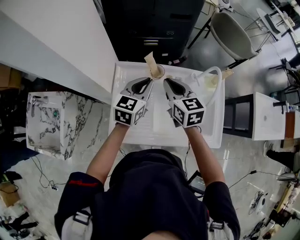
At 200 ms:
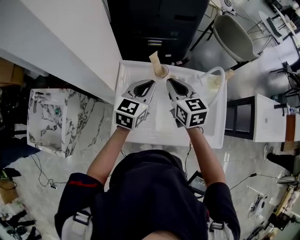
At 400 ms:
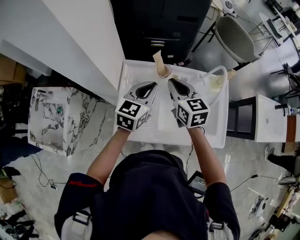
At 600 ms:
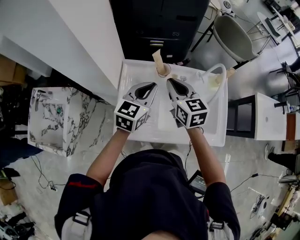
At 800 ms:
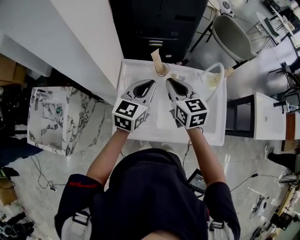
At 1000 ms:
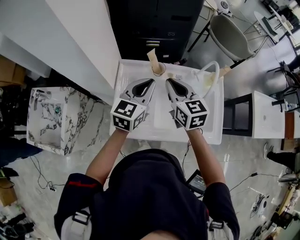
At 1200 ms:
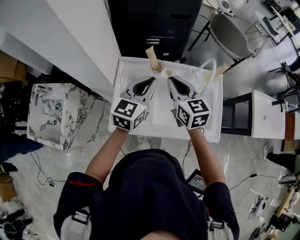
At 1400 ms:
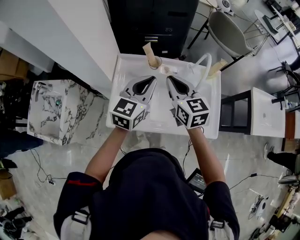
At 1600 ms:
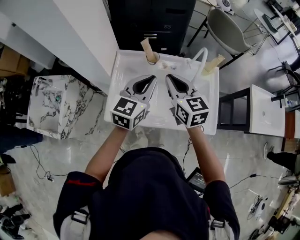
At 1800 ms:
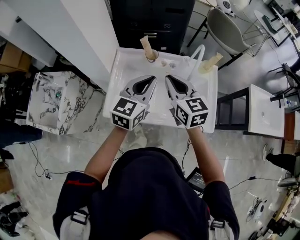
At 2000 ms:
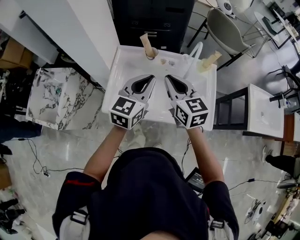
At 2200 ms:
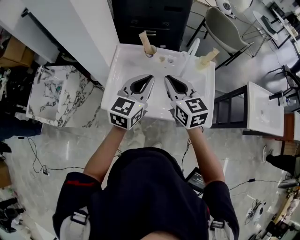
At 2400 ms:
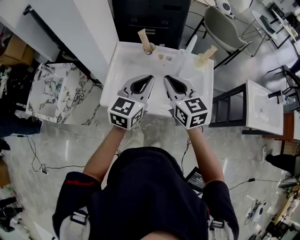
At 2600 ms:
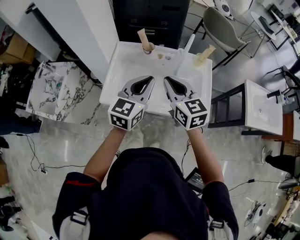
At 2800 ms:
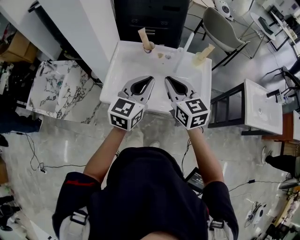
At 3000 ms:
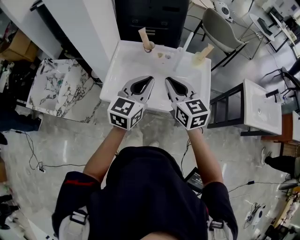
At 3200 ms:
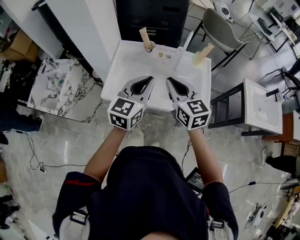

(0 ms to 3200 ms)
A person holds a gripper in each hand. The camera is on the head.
0 ms - 1600 ms: The left gripper shifts roughly 15 cm backward, upward and to the right. Meanwhile the right gripper moves backward and upward, some 10 cm.
1600 ms - 3200 ms: Both grippers travel together backward, approximately 15 cm.

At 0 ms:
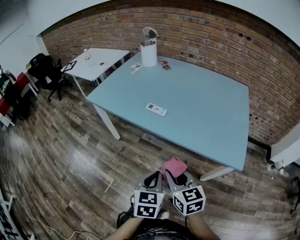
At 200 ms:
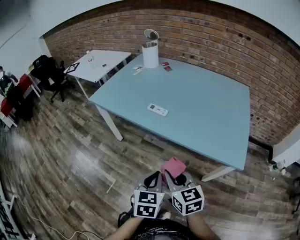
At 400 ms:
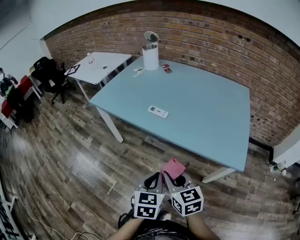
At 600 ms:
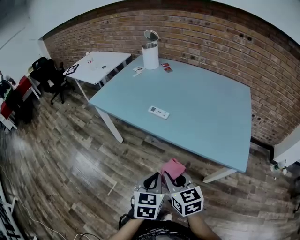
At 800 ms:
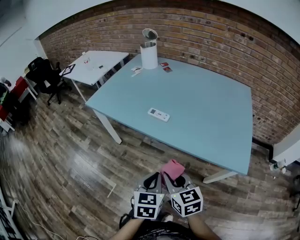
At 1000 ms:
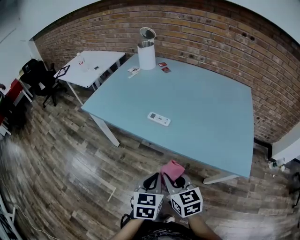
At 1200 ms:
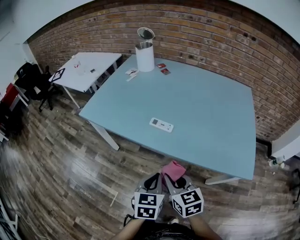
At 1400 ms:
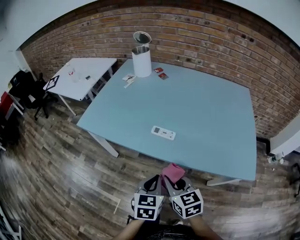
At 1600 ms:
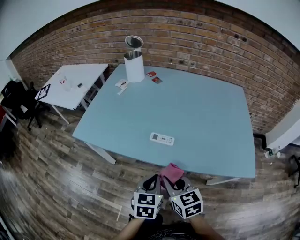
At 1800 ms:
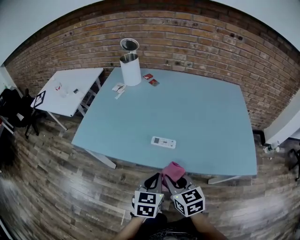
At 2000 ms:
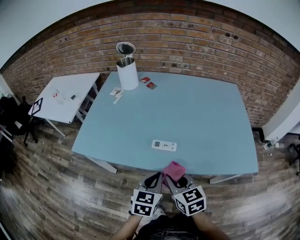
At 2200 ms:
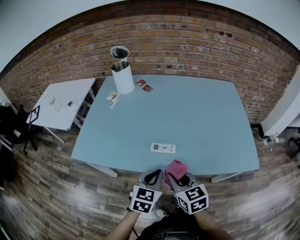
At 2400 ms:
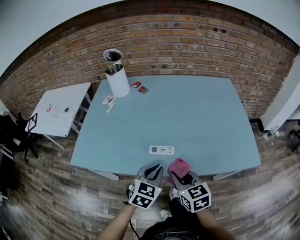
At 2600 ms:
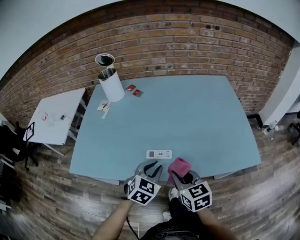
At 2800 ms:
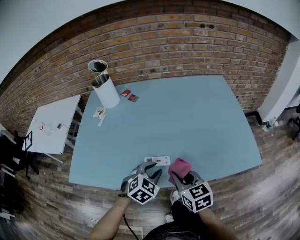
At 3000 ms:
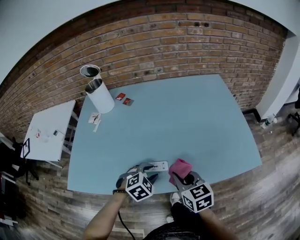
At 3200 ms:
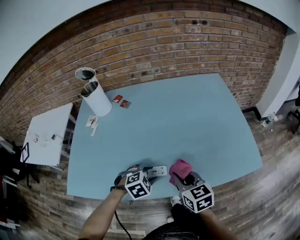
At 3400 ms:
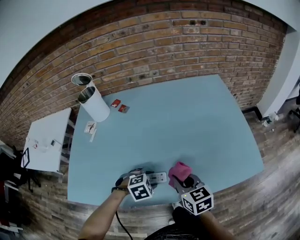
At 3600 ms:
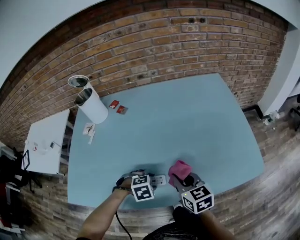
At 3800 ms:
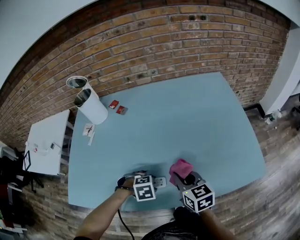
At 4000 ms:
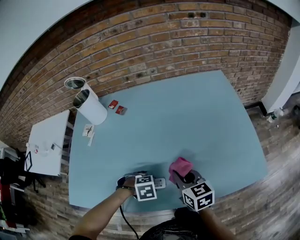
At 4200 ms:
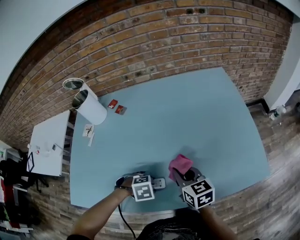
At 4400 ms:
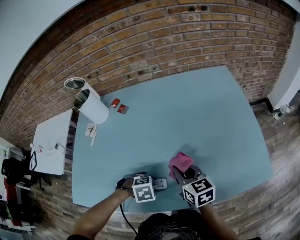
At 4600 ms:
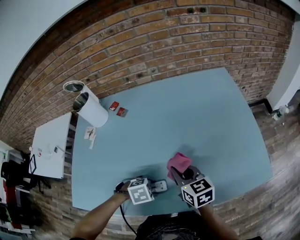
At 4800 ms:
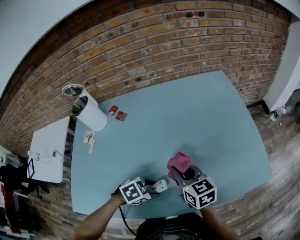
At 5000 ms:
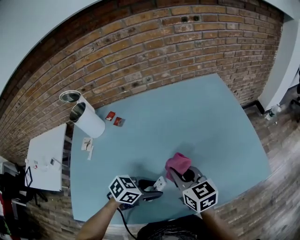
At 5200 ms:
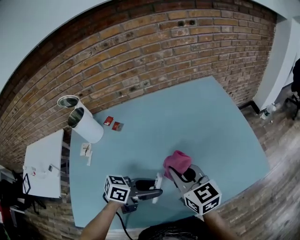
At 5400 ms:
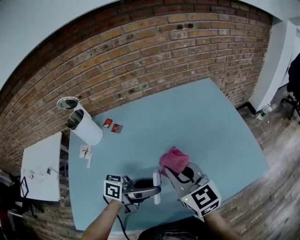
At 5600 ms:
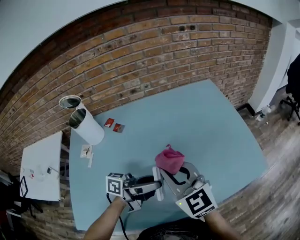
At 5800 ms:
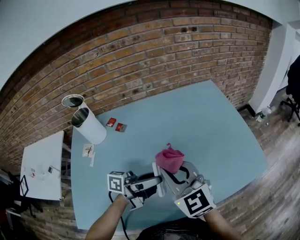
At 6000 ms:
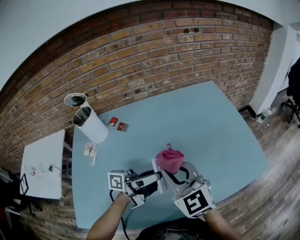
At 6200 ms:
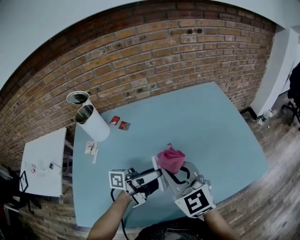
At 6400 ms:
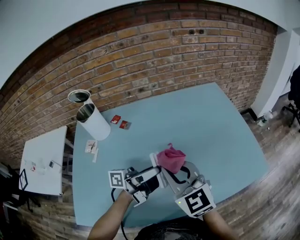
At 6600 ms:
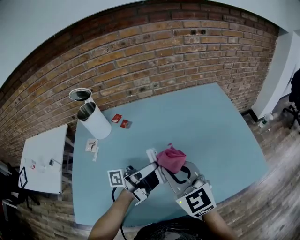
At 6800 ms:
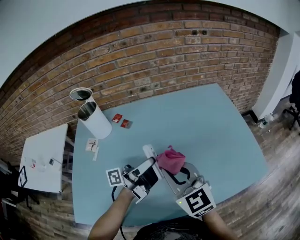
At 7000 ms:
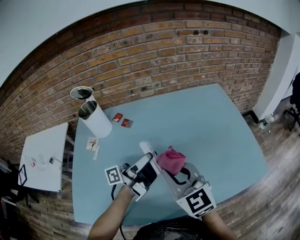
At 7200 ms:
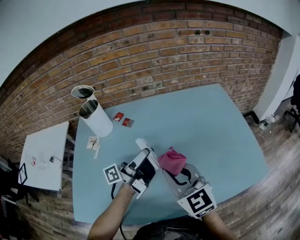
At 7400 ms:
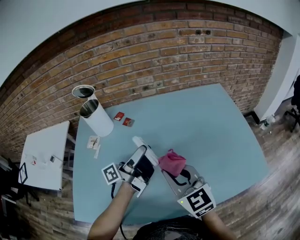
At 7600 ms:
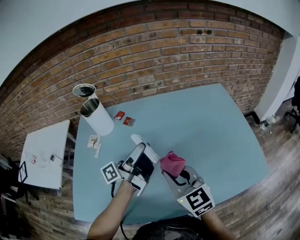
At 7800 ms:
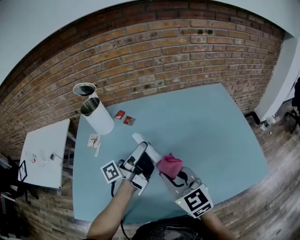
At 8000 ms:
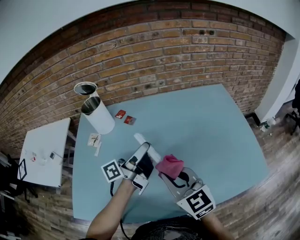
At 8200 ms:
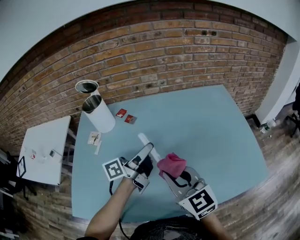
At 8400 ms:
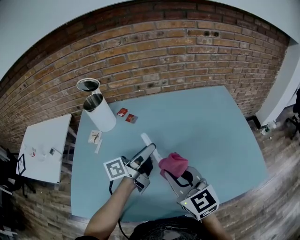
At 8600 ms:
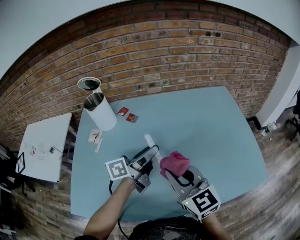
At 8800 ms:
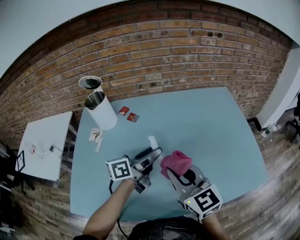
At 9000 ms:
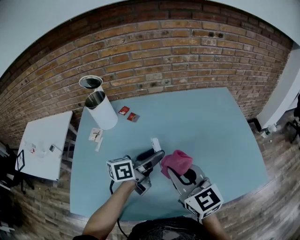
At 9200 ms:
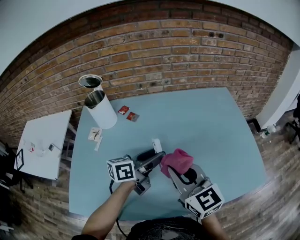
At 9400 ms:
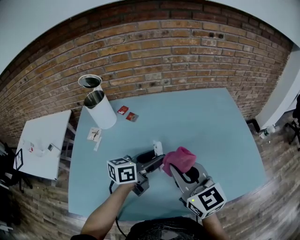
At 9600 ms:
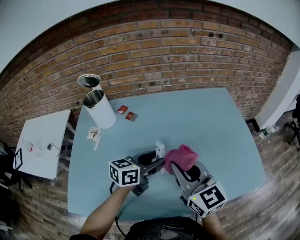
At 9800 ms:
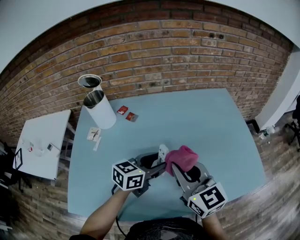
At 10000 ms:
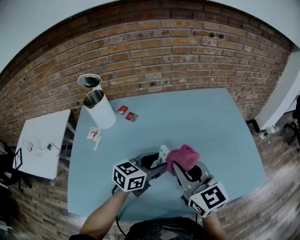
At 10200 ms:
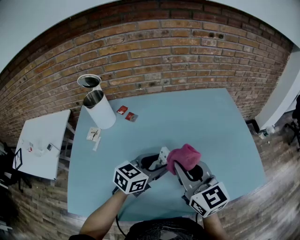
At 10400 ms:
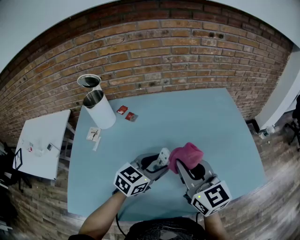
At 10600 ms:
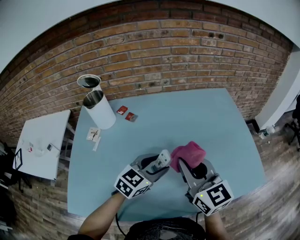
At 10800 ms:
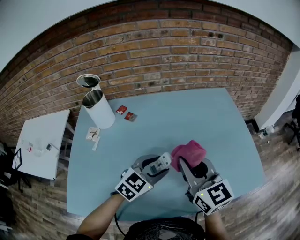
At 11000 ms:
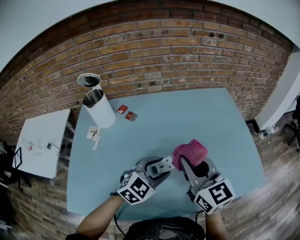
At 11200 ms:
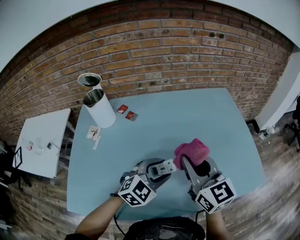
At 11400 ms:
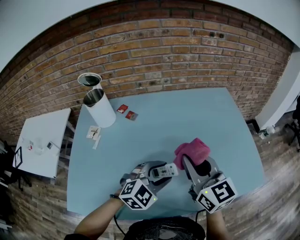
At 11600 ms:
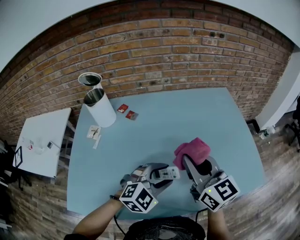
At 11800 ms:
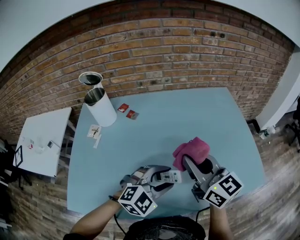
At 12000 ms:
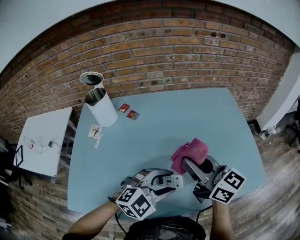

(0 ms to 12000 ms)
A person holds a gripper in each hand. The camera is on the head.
0 ms - 1600 ms: The right gripper travels forward and to the left by about 20 cm; the left gripper travels forward by about 20 cm.
1600 ms - 3000 ms: The left gripper ends up roughly 20 cm from where it was, rotates around the line of its fingers by approximately 60 degrees, clockwise from behind, and opens up. Meanwhile the right gripper ends up roughly 15 cm from where it was.
3000 ms - 4400 ms: The left gripper moves downward, roughly 5 cm, and rotates some 40 degrees, while the right gripper shifts by about 15 cm.
4400 ms - 6000 ms: Both grippers move upward, about 20 cm. The left gripper angles its fingers upward, by roughly 100 degrees; the right gripper turns by some 40 degrees.
6000 ms - 7600 ms: The right gripper moves approximately 5 cm. The left gripper goes approximately 10 cm to the left and forward, and changes its angle by about 40 degrees.
7600 ms - 9000 ms: The left gripper moves roughly 5 cm, and rotates some 40 degrees.
9000 ms - 10400 ms: The left gripper shifts by some 5 cm, and swivels roughly 40 degrees.
10400 ms - 12000 ms: The right gripper swivels some 20 degrees. Meanwhile the left gripper moves backward and to the right, about 10 cm, and changes its angle by some 40 degrees.

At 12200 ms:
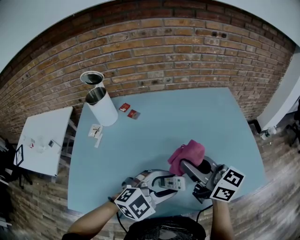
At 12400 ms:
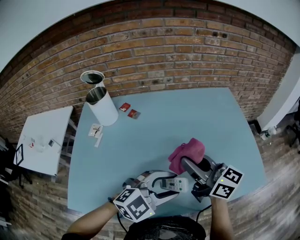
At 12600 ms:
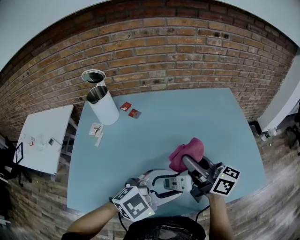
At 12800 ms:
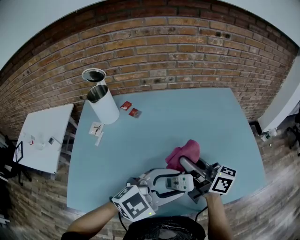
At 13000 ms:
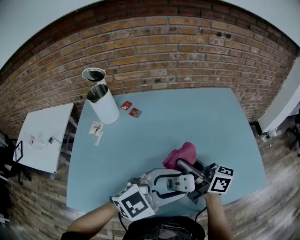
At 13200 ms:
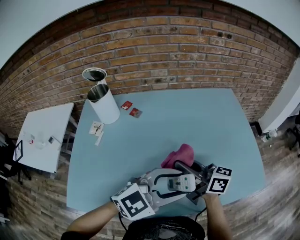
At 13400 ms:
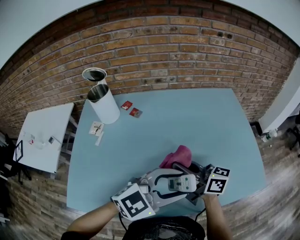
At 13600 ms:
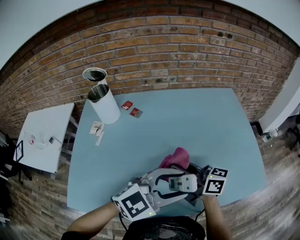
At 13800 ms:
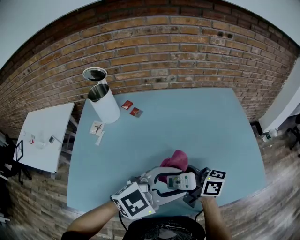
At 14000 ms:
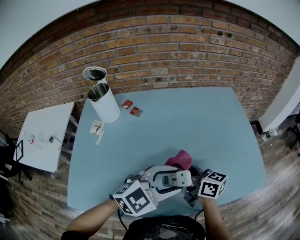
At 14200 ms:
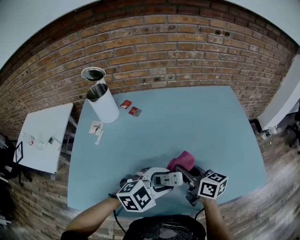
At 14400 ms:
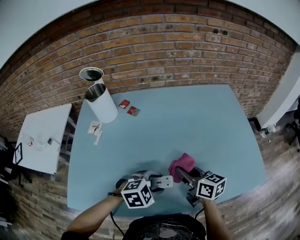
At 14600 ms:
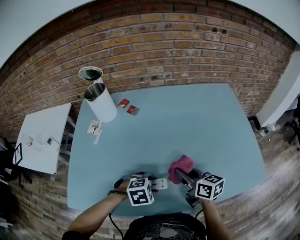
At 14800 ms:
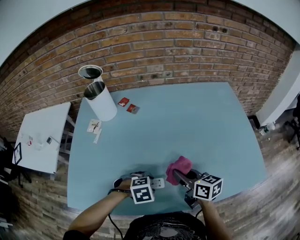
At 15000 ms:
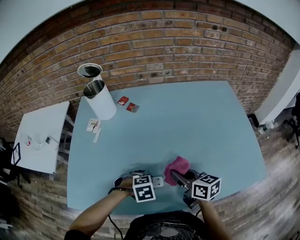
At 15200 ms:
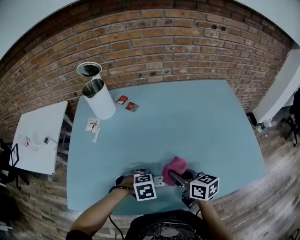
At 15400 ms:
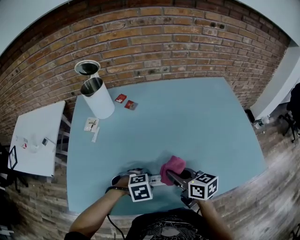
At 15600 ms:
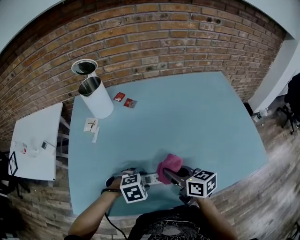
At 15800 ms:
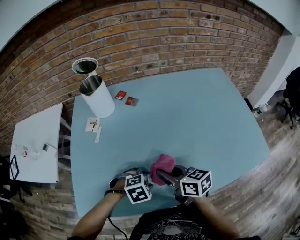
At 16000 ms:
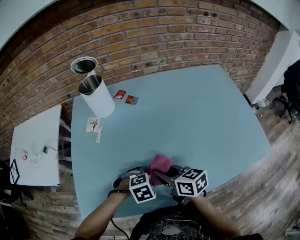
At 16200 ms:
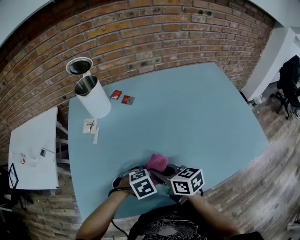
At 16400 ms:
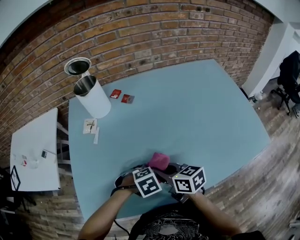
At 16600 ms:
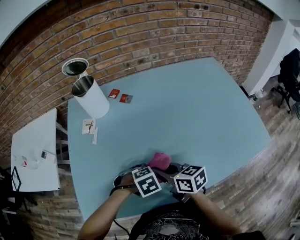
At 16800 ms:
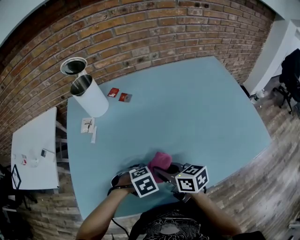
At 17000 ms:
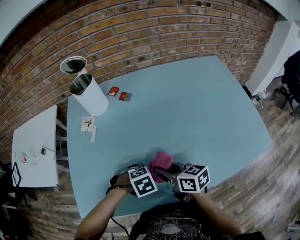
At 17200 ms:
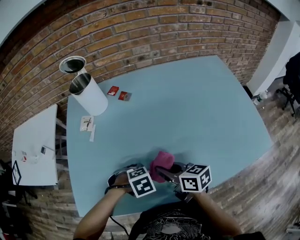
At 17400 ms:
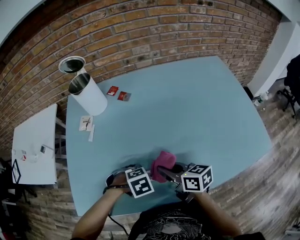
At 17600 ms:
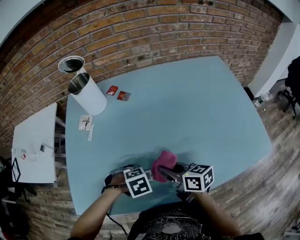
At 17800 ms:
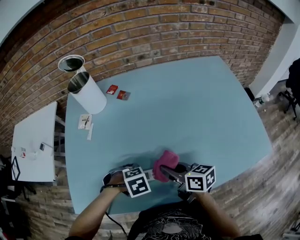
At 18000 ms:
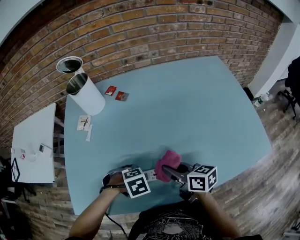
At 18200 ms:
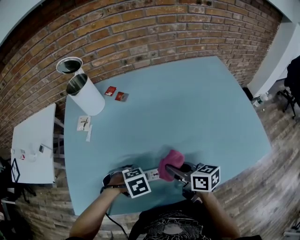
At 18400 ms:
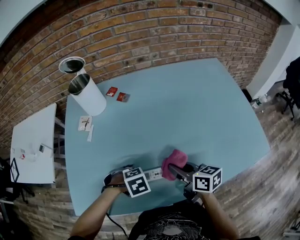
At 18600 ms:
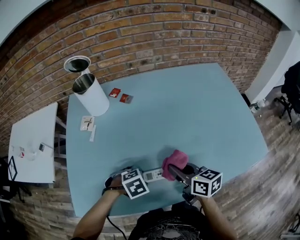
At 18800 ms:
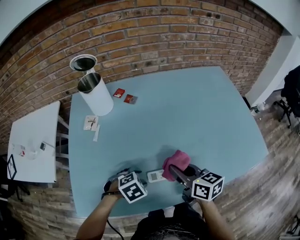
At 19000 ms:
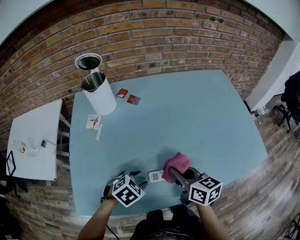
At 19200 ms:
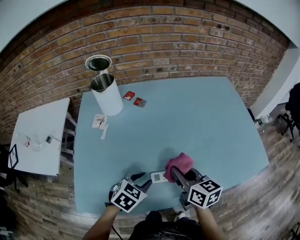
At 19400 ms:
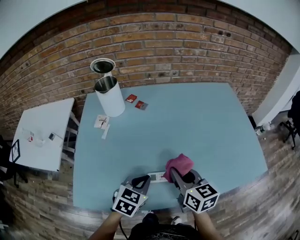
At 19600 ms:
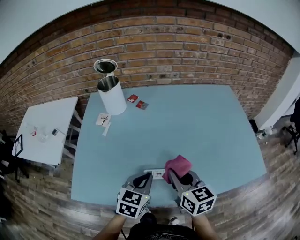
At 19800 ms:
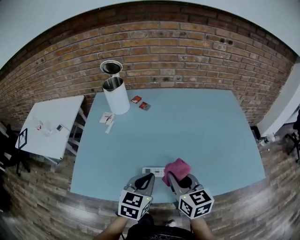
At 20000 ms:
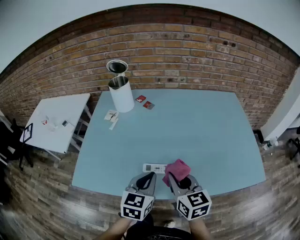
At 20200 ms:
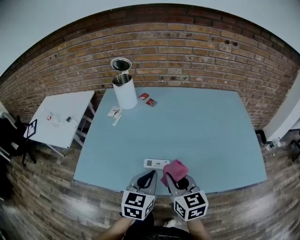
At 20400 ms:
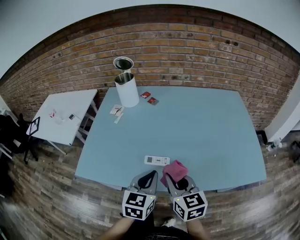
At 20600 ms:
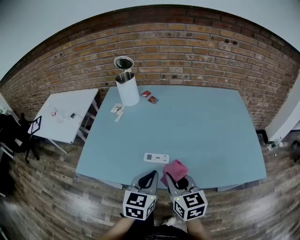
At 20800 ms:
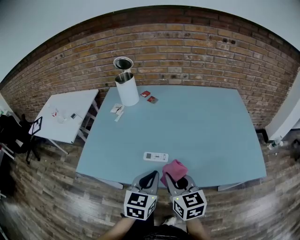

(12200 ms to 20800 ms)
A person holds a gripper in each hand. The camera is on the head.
12200 ms - 13600 ms: The right gripper goes about 5 cm downward, and changes its angle by roughly 20 degrees. The left gripper moves upward, approximately 5 cm.
13600 ms - 15000 ms: The left gripper moves downward, roughly 25 cm, and tips its fingers downward by approximately 60 degrees, while the right gripper is displaced downward by about 10 cm, and turns by roughly 30 degrees.
15000 ms - 16600 ms: The right gripper shifts by about 15 cm. The left gripper ends up about 5 cm from where it was.
16600 ms - 18000 ms: The right gripper moves about 10 cm.
18000 ms - 19400 ms: Both grippers move upward, approximately 10 cm. The right gripper swivels about 30 degrees. The left gripper tips its fingers upward by some 40 degrees, and closes up.
19400 ms - 20800 ms: The right gripper moves backward, approximately 15 cm, while the left gripper is displaced backward, to the right and upward by about 15 cm, and turns by roughly 30 degrees.
